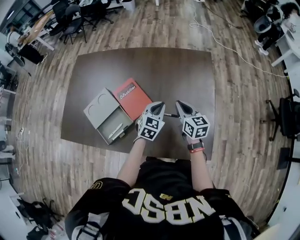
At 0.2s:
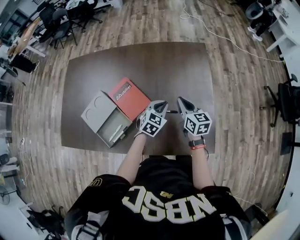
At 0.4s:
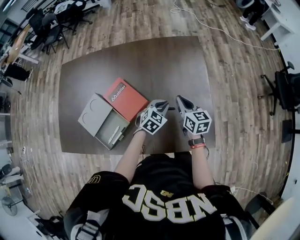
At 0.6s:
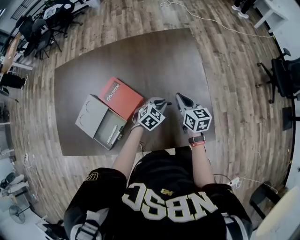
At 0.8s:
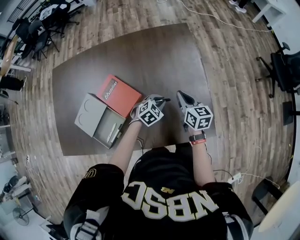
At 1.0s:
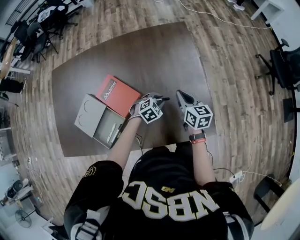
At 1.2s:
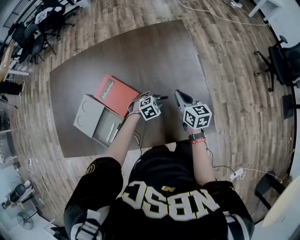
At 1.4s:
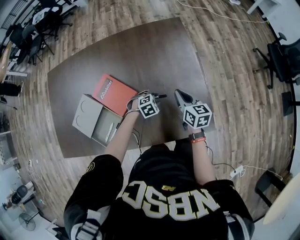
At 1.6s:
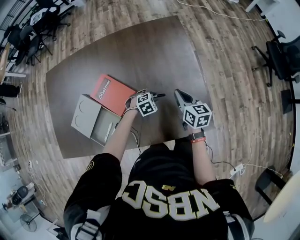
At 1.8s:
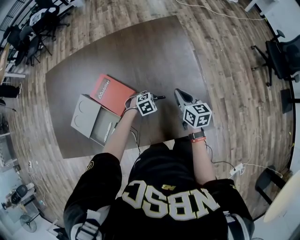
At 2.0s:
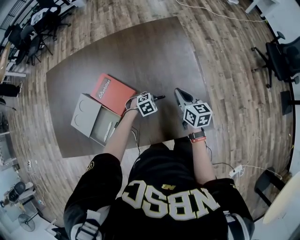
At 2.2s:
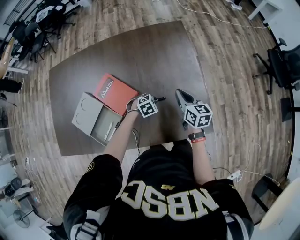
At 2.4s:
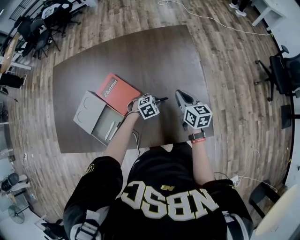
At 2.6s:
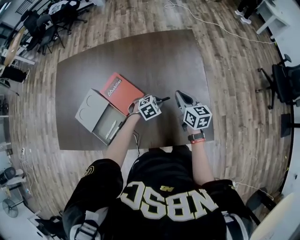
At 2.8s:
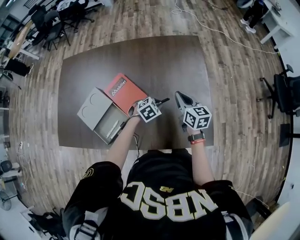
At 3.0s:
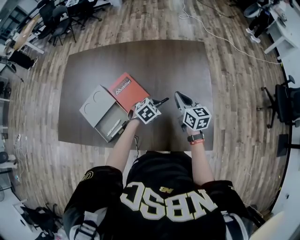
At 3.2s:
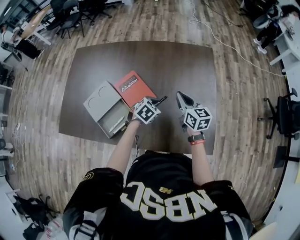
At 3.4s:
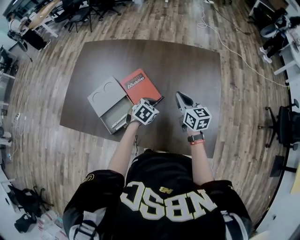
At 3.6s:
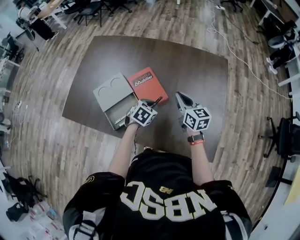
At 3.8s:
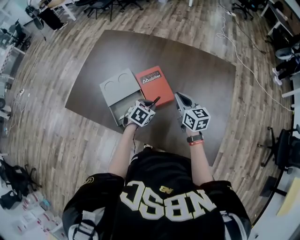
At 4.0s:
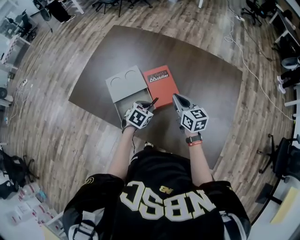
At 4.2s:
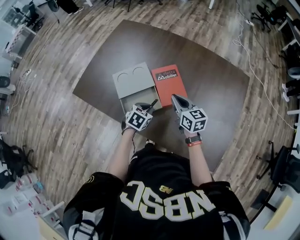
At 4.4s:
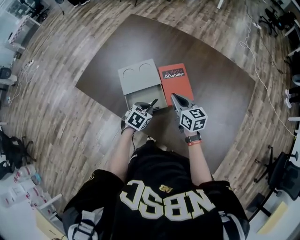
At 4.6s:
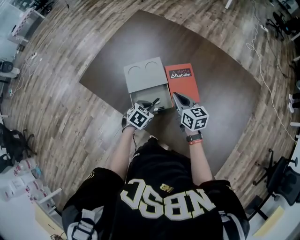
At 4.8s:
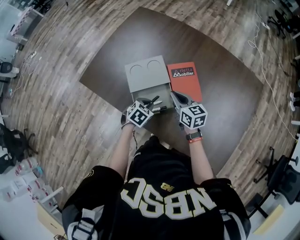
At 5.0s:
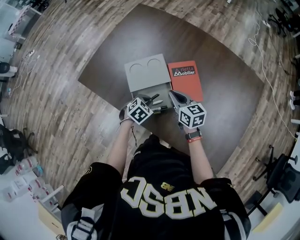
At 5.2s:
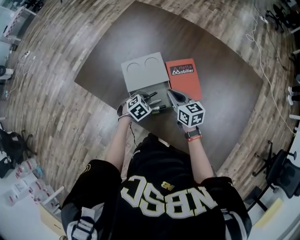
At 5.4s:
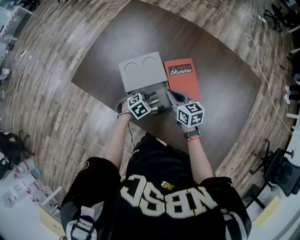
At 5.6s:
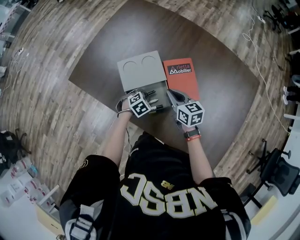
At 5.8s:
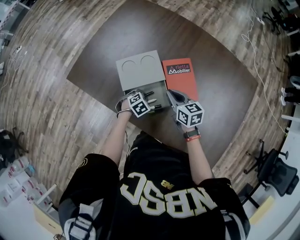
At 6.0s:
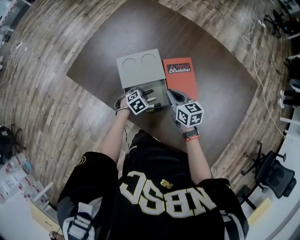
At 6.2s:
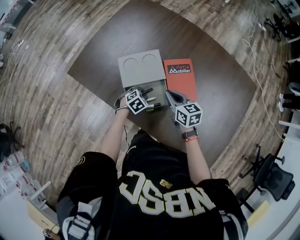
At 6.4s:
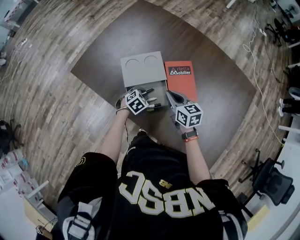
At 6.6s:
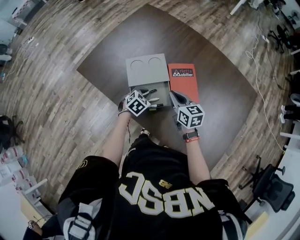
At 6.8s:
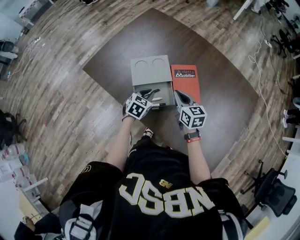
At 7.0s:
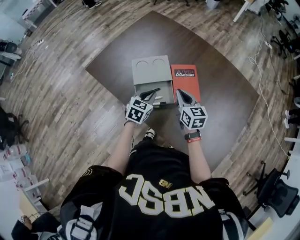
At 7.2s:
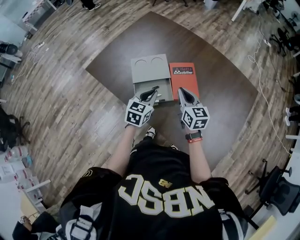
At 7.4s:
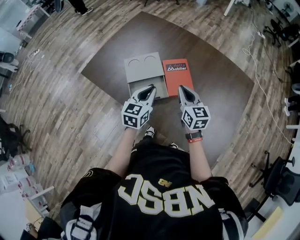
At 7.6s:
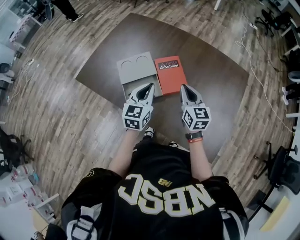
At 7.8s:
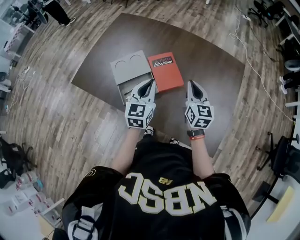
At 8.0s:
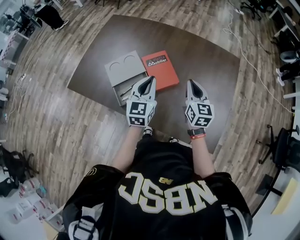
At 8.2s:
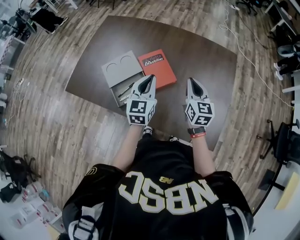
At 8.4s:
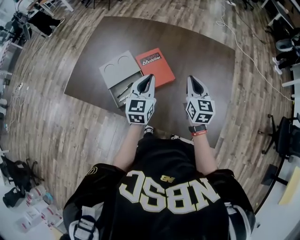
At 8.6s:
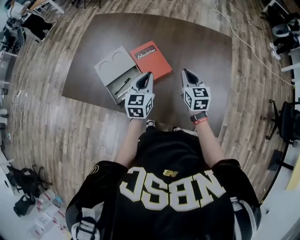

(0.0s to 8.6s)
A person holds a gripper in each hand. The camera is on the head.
0.0s - 1.4s: The left gripper moves downward, approximately 20 cm, tips its fingers downward by roughly 40 degrees, and opens; the right gripper moves roughly 10 cm.
1.4s - 2.8s: The right gripper moves approximately 5 cm. The left gripper shifts roughly 10 cm upward, rotates about 20 degrees, and closes up.
2.8s - 4.4s: The right gripper changes place by approximately 30 cm, and turns by about 40 degrees; the left gripper ends up roughly 30 cm from where it was, and rolls counterclockwise, seen from behind, by some 50 degrees.
4.4s - 5.8s: The right gripper shifts roughly 10 cm to the left and downward. Meanwhile the left gripper shifts approximately 15 cm downward, to the left and forward, and changes its angle by roughly 20 degrees.
5.8s - 7.2s: The right gripper travels upward and backward by about 10 cm, while the left gripper goes roughly 25 cm upward, and angles its fingers upward, by approximately 40 degrees.
7.2s - 8.6s: Both grippers travel together to the right, roughly 15 cm. The right gripper turns by some 30 degrees.

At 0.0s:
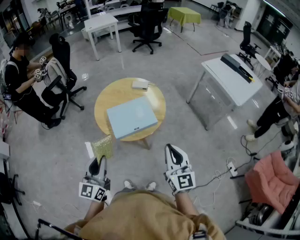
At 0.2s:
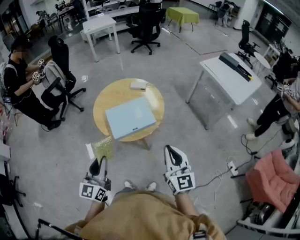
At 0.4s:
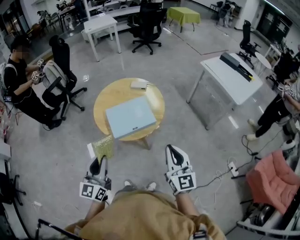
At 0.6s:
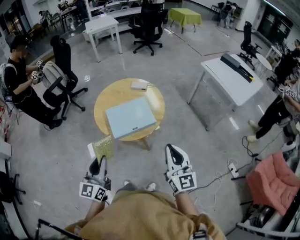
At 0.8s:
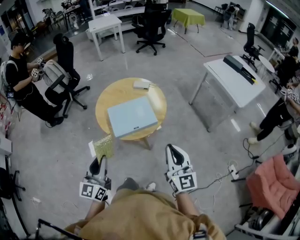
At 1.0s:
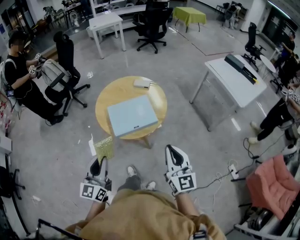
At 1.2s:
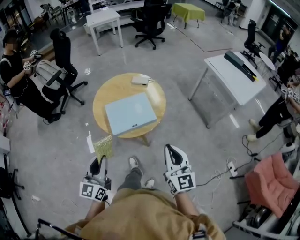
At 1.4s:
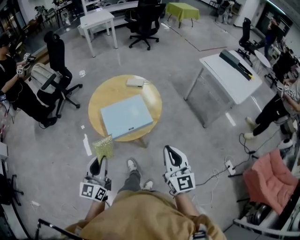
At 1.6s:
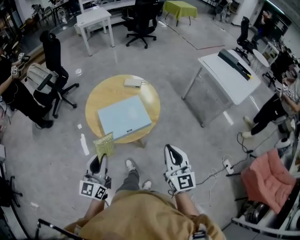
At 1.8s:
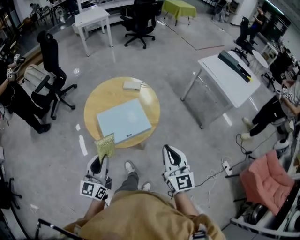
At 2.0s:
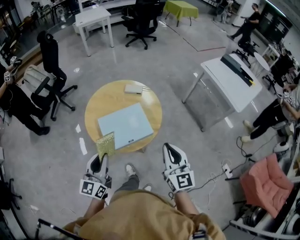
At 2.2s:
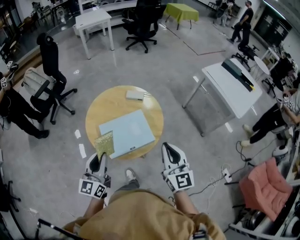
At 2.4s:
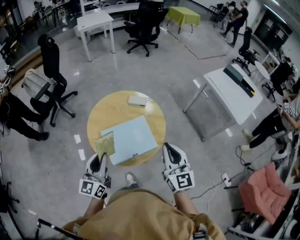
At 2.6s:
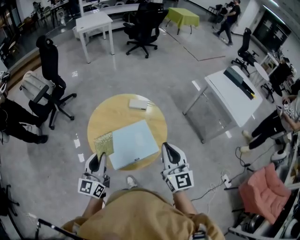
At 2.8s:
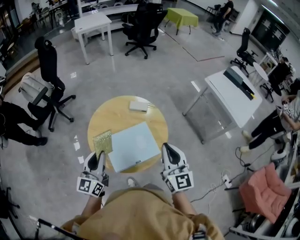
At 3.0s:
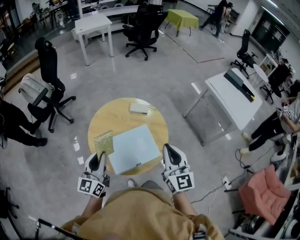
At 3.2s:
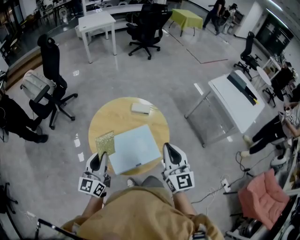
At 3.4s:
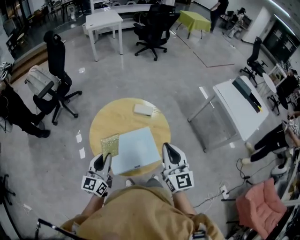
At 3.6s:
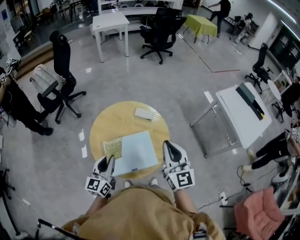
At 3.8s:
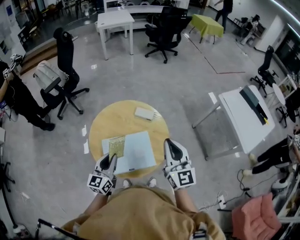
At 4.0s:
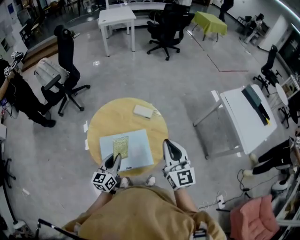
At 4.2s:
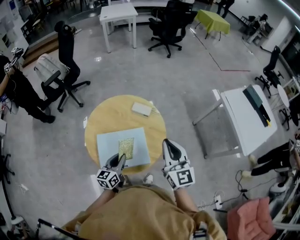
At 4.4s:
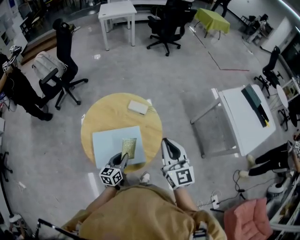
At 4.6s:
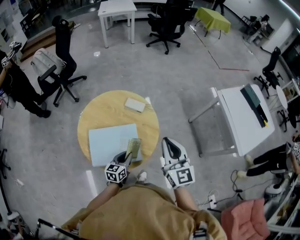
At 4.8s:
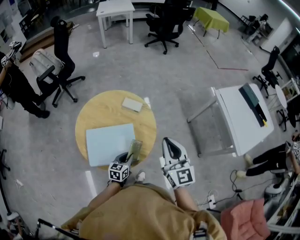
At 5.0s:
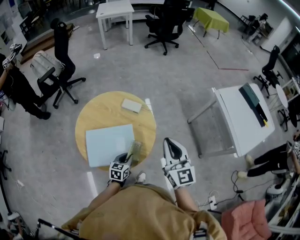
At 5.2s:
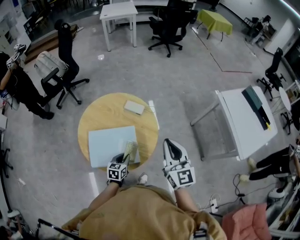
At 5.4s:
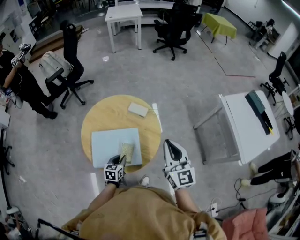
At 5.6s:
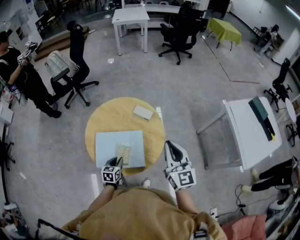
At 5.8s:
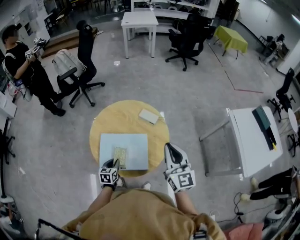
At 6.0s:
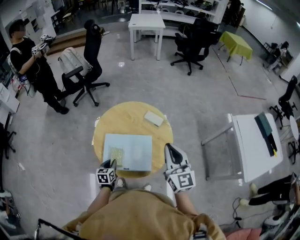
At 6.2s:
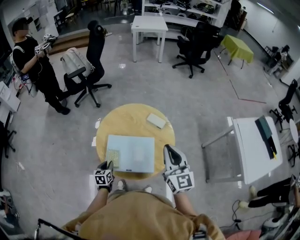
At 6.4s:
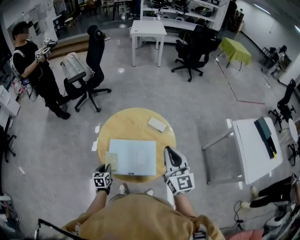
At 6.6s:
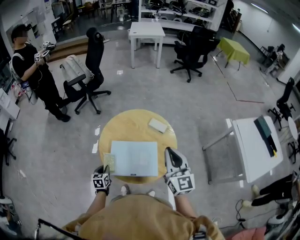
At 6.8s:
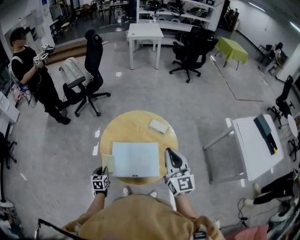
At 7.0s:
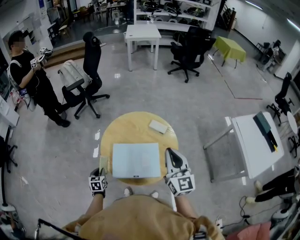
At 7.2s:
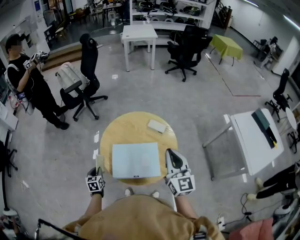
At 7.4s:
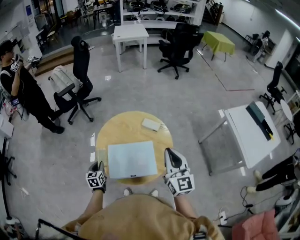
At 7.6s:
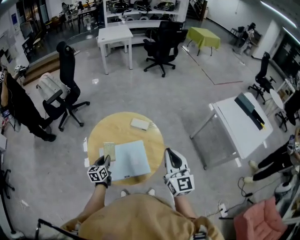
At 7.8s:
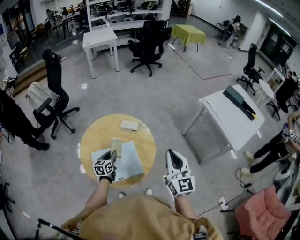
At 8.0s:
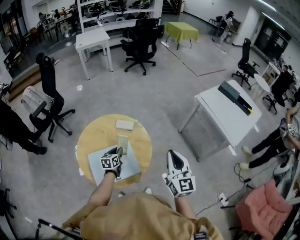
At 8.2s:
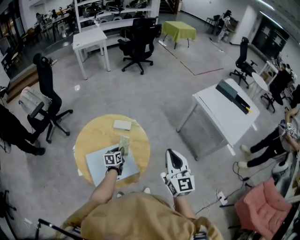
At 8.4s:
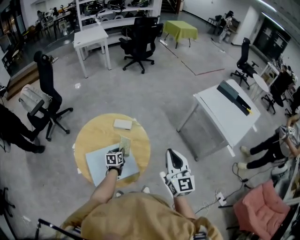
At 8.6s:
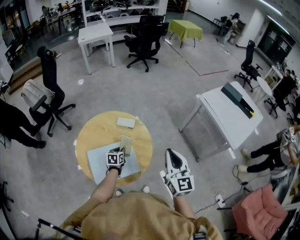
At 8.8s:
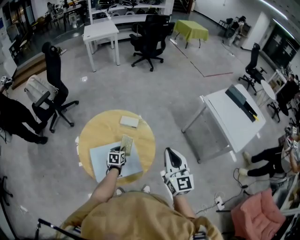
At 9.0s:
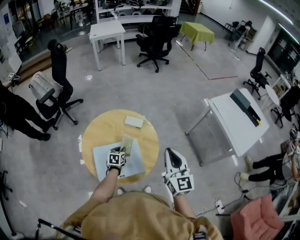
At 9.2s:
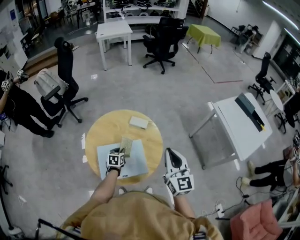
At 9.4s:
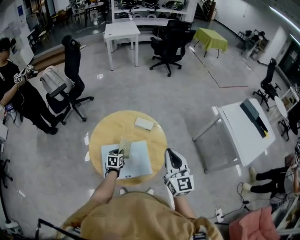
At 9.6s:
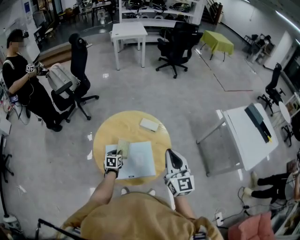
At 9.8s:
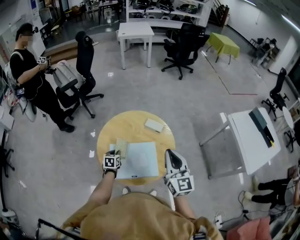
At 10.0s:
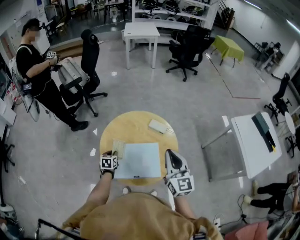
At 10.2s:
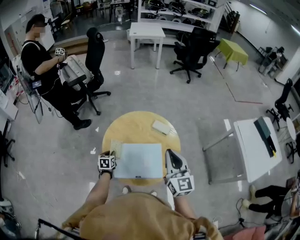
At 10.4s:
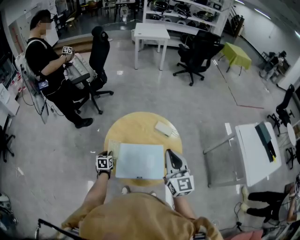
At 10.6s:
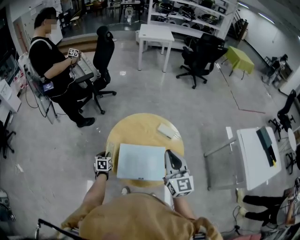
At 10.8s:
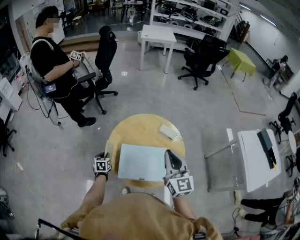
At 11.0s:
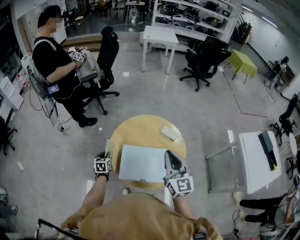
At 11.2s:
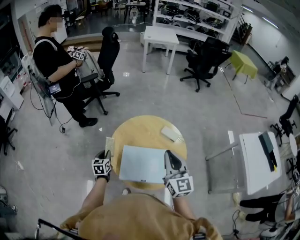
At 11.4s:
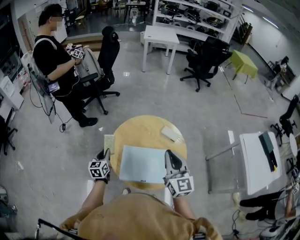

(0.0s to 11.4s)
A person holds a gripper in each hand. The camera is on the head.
0.0s - 1.4s: The left gripper changes place by about 5 cm.
1.4s - 2.8s: Both grippers move forward, roughly 30 cm.
2.8s - 4.2s: The left gripper moves to the right and downward, roughly 25 cm, and changes its angle by about 20 degrees; the right gripper moves forward and to the right, roughly 15 cm.
4.2s - 5.6s: The right gripper goes about 5 cm to the right. The left gripper shifts some 10 cm downward, moves roughly 15 cm to the right and comes back, and swivels approximately 30 degrees.
5.6s - 7.2s: The left gripper heads to the left, covering approximately 30 cm, and changes its angle by about 20 degrees; the right gripper moves to the left, approximately 10 cm.
7.2s - 8.6s: The right gripper changes place by about 15 cm. Meanwhile the left gripper changes place by approximately 40 cm, and changes its angle by some 30 degrees.
8.6s - 10.0s: The two grippers go roughly 20 cm to the left. The left gripper swivels roughly 20 degrees.
10.0s - 11.4s: The right gripper heads to the left, covering some 10 cm; the left gripper goes approximately 15 cm upward and to the left, and rotates approximately 30 degrees.

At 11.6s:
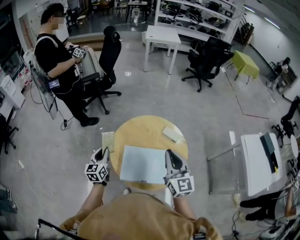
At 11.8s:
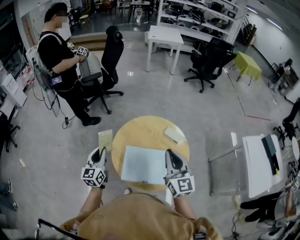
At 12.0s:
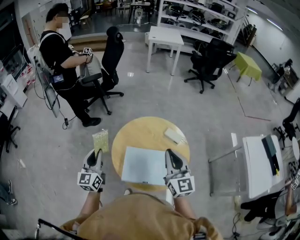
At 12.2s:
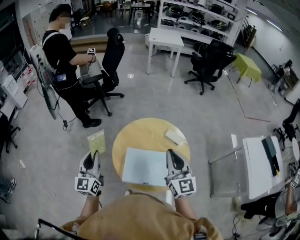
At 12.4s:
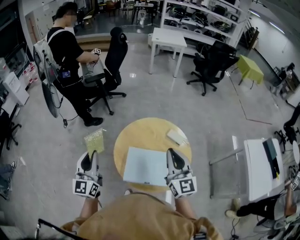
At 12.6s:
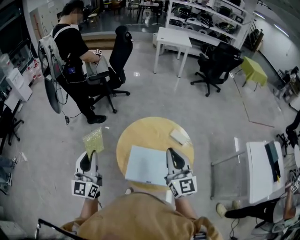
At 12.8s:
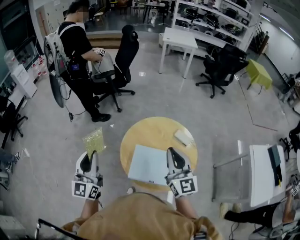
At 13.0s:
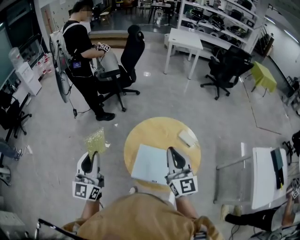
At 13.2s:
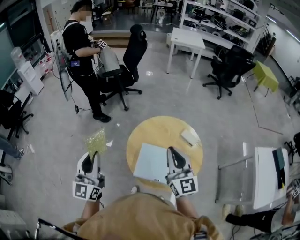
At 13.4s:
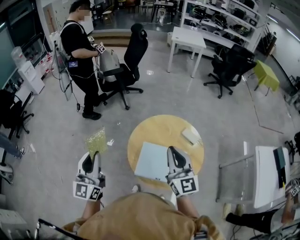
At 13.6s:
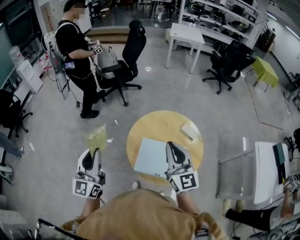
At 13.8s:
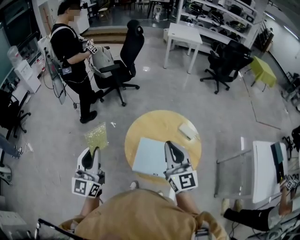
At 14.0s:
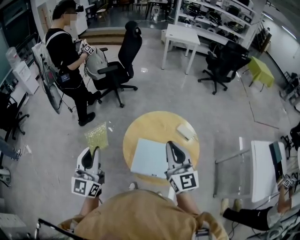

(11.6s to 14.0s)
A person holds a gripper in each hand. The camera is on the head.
11.6s - 12.8s: The right gripper travels to the left by about 5 cm. Meanwhile the left gripper moves upward and backward, some 20 cm, and rotates some 30 degrees.
12.8s - 14.0s: The grippers make only small movements.

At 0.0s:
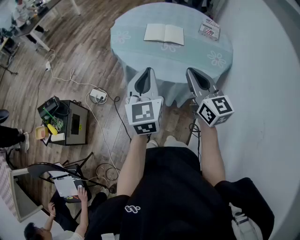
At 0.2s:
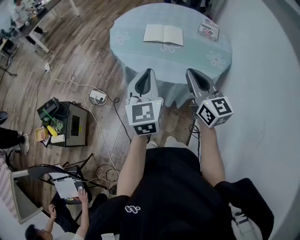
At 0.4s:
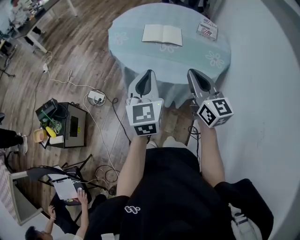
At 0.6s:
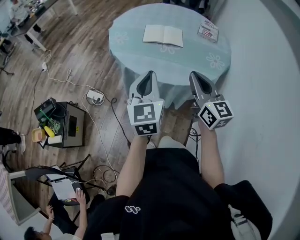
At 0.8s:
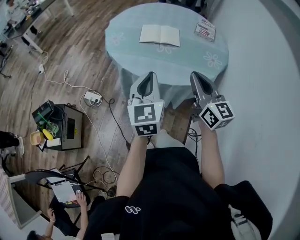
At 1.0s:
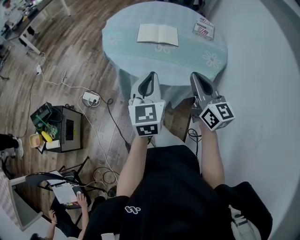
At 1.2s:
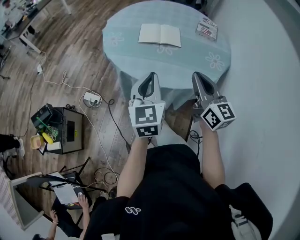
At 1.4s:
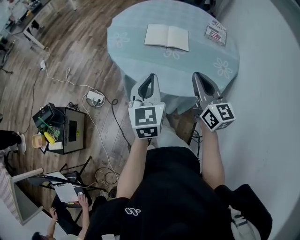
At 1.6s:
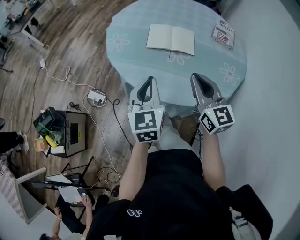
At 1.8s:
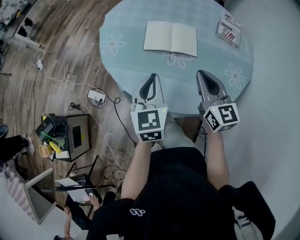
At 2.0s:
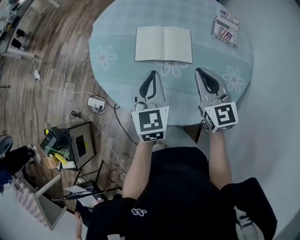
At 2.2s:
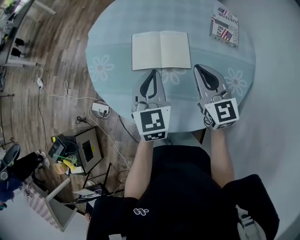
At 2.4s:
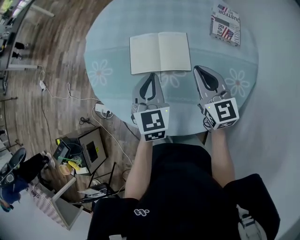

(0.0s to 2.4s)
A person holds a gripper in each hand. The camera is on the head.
0.0s - 1.2s: The left gripper is displaced forward by some 5 cm. Meanwhile the right gripper moves some 5 cm.
1.2s - 2.4s: Both grippers travel together forward, about 35 cm. The left gripper changes its angle by roughly 20 degrees.
